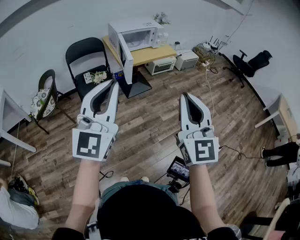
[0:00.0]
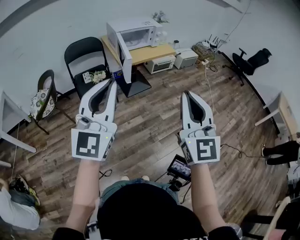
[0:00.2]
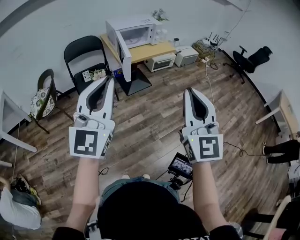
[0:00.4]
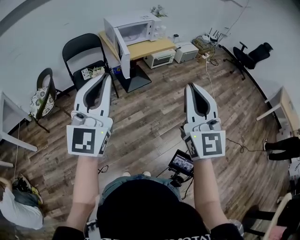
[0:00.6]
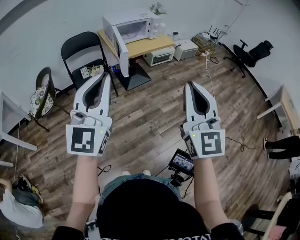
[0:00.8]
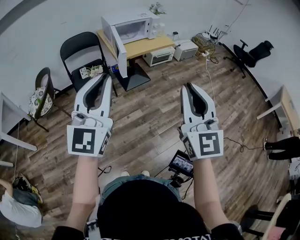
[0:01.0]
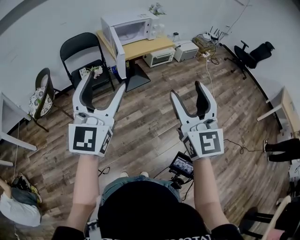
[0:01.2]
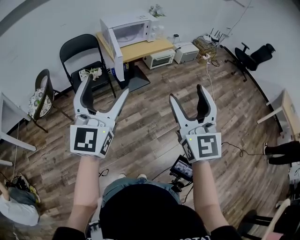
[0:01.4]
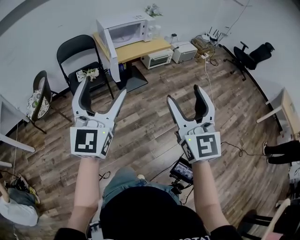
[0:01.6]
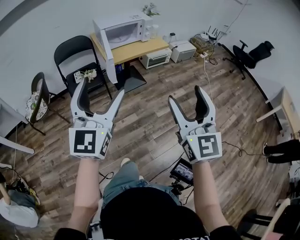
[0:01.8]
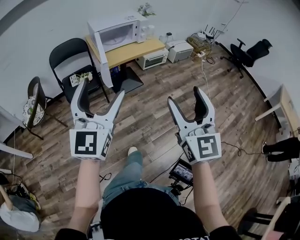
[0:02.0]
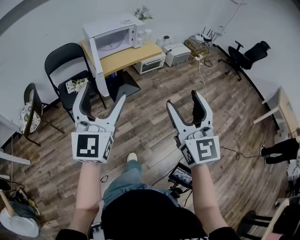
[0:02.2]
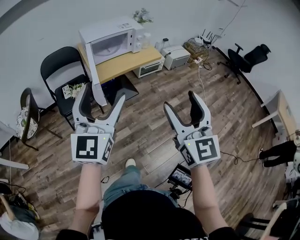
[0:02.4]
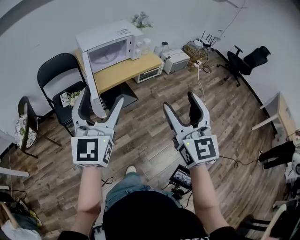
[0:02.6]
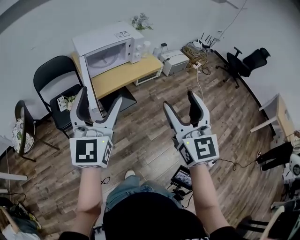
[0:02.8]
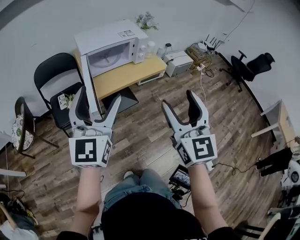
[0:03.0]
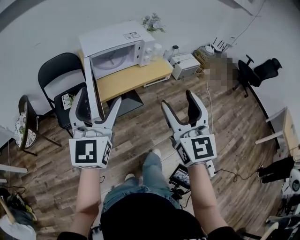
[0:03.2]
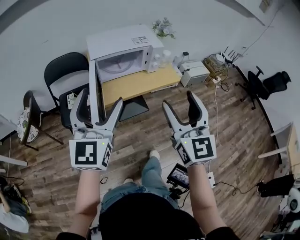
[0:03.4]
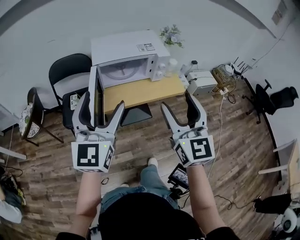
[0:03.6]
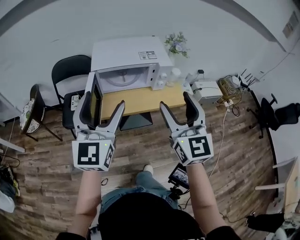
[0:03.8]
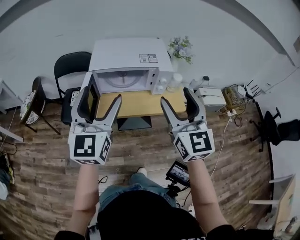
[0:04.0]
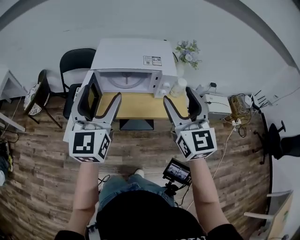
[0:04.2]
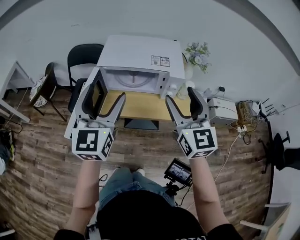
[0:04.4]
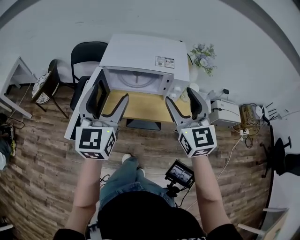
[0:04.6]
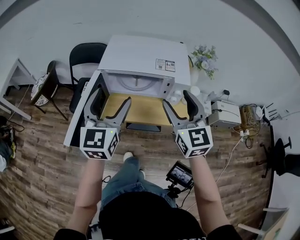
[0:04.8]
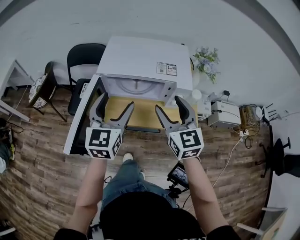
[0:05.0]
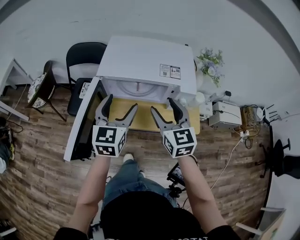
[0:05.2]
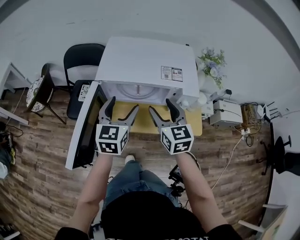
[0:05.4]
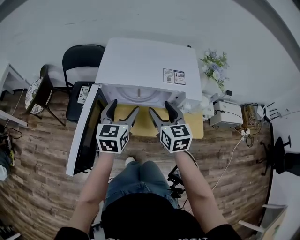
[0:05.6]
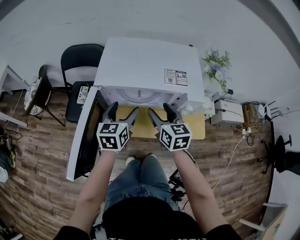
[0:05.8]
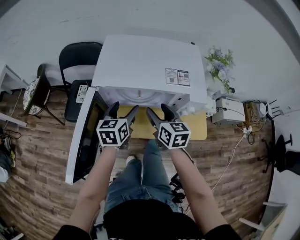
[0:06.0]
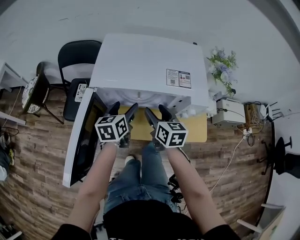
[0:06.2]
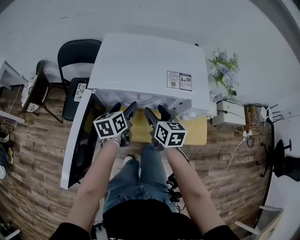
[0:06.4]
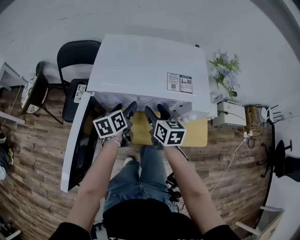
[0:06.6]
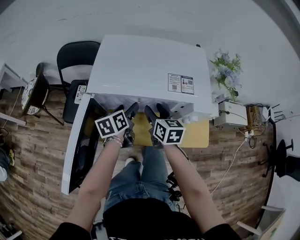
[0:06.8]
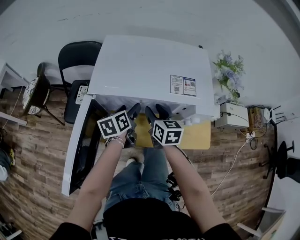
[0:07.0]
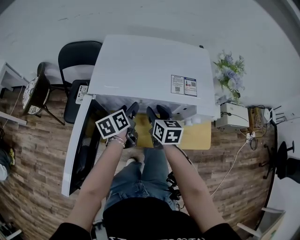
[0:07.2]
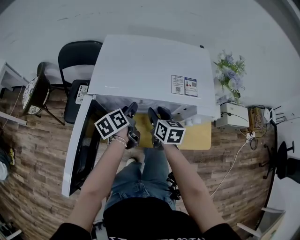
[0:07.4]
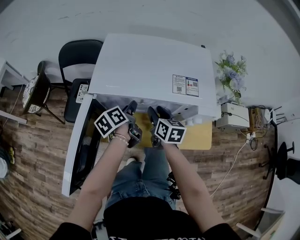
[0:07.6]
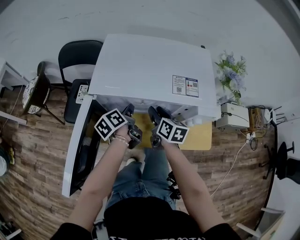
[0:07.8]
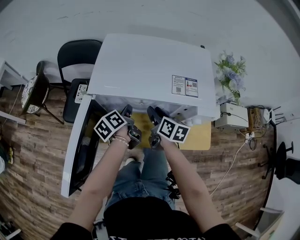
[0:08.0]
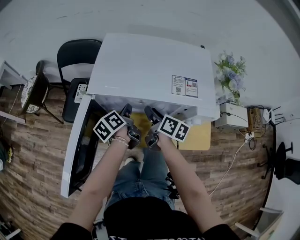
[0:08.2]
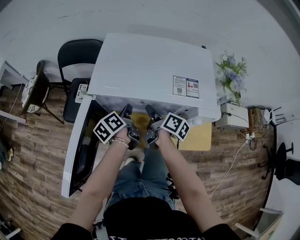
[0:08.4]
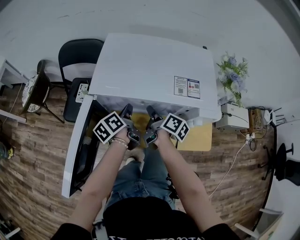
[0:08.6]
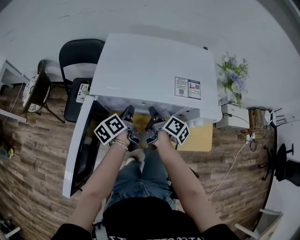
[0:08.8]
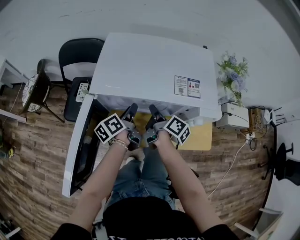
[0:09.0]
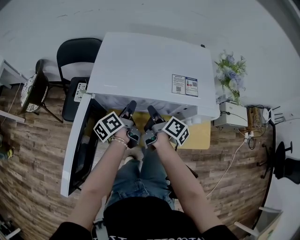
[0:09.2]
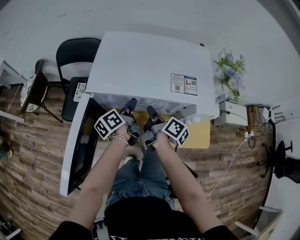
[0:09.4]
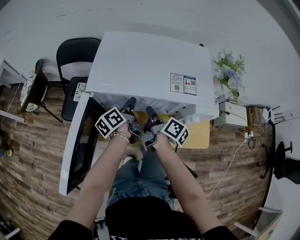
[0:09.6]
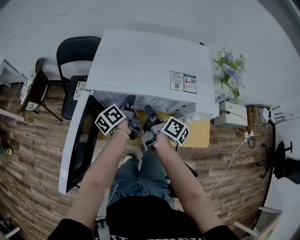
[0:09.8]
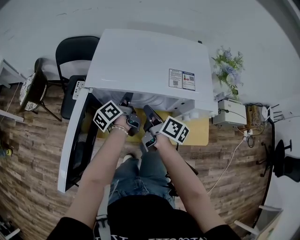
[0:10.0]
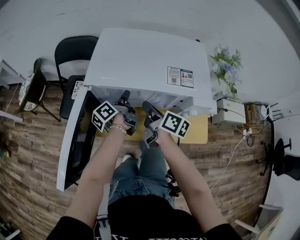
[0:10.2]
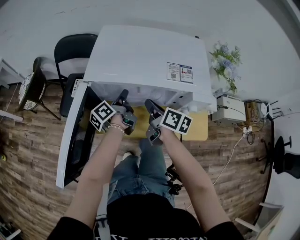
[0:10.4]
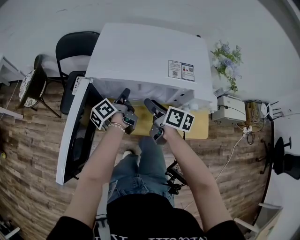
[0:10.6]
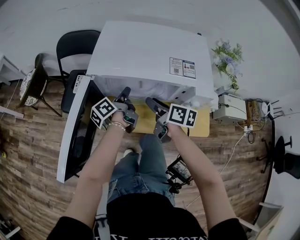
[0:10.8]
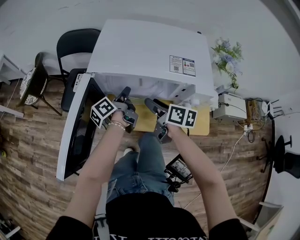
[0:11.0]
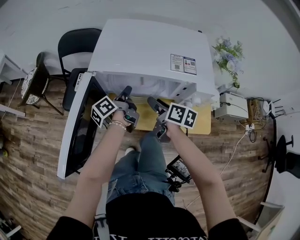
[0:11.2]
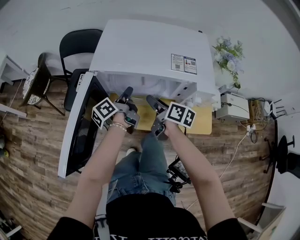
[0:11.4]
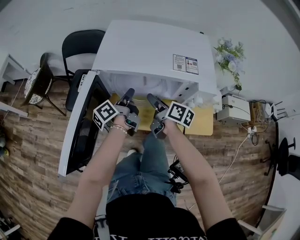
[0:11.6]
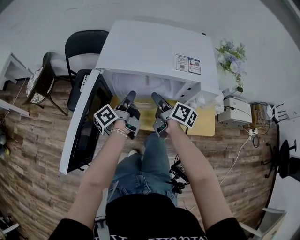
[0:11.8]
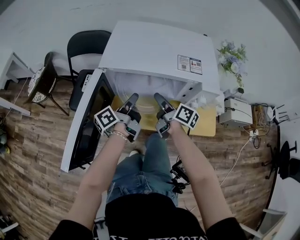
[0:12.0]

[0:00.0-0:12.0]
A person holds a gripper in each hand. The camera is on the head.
0:00.0 to 0:01.6: The grippers both shift to the right and forward by about 10 cm. The right gripper opens up. The left gripper opens.
0:01.6 to 0:03.0: Both grippers travel together forward, about 30 cm.
0:03.0 to 0:04.4: The right gripper ends up roughly 35 cm from where it was, and changes its angle by some 40 degrees; the left gripper moves some 25 cm, and swivels approximately 30 degrees.
0:04.4 to 0:06.0: The grippers both shift downward and forward by about 30 cm. The left gripper changes its angle by some 40 degrees, while the right gripper rotates some 40 degrees.
0:06.0 to 0:07.6: The two grippers go some 10 cm downward and forward. The right gripper closes; the left gripper rolls counterclockwise, seen from behind, by roughly 50 degrees, and closes its fingers.
0:07.6 to 0:09.0: The right gripper rolls clockwise, seen from behind, by about 50 degrees, and closes.
0:09.0 to 0:10.4: The right gripper changes its angle by roughly 30 degrees.
0:10.4 to 0:12.0: The right gripper opens up. Meanwhile the left gripper travels backward by roughly 10 cm.

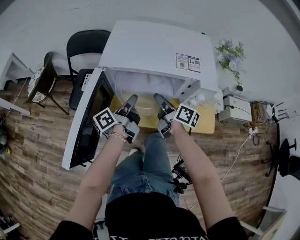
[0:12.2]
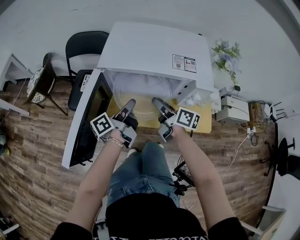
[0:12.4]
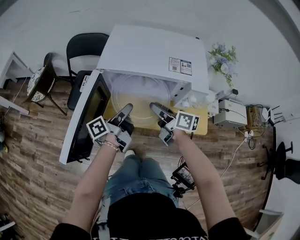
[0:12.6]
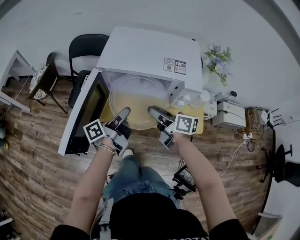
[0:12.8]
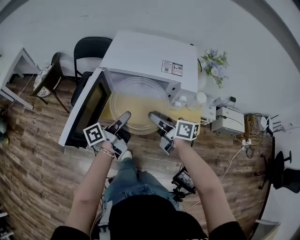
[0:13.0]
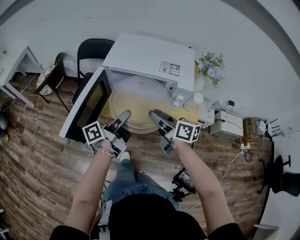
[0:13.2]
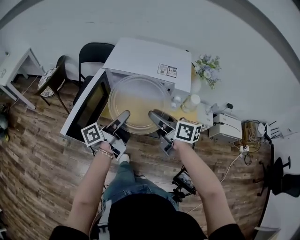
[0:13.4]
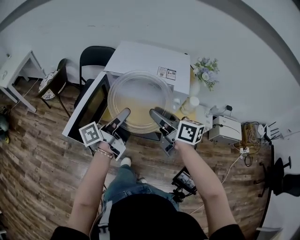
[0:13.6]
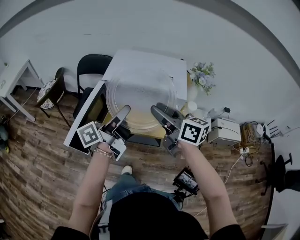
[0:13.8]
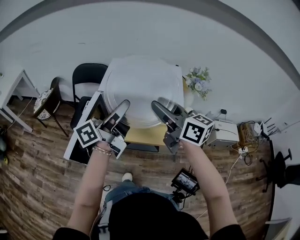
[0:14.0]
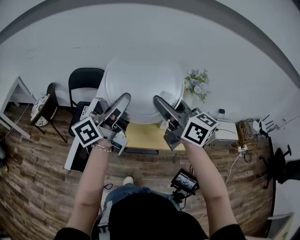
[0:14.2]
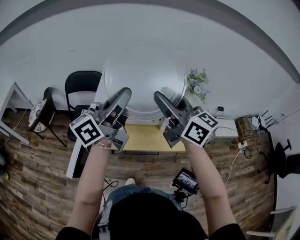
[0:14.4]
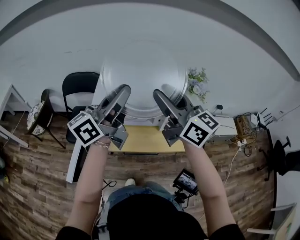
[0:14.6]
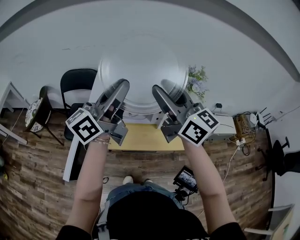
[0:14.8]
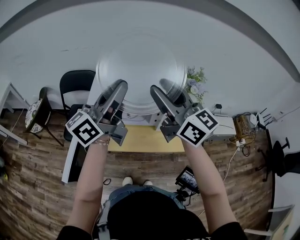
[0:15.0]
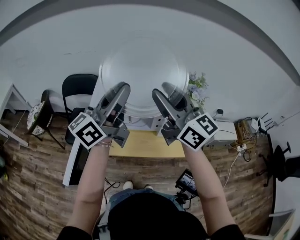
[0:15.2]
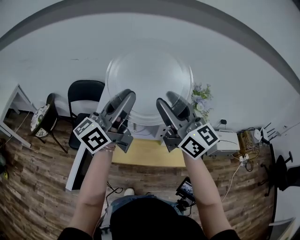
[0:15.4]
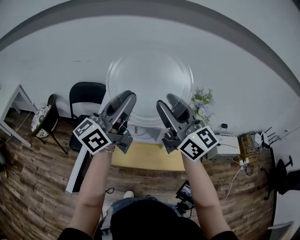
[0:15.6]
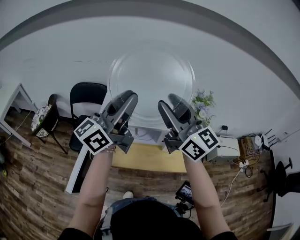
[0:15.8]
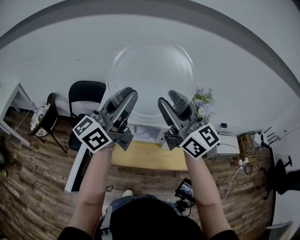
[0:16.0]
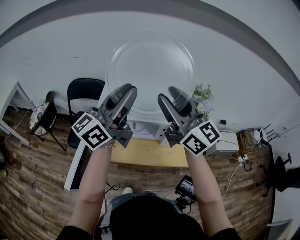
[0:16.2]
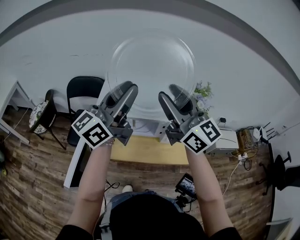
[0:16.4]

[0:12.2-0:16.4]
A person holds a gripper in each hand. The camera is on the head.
0:12.2 to 0:13.6: Both grippers move upward and backward, about 25 cm. The right gripper swivels some 30 degrees.
0:13.6 to 0:15.0: Both grippers move upward and forward, roughly 25 cm. The right gripper changes its angle by some 40 degrees. Meanwhile the left gripper turns by approximately 40 degrees.
0:15.0 to 0:16.4: The grippers move only a little.

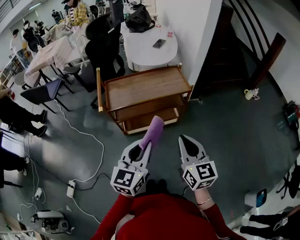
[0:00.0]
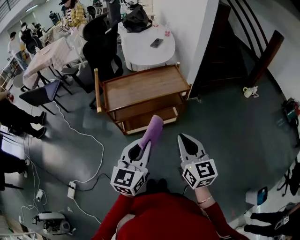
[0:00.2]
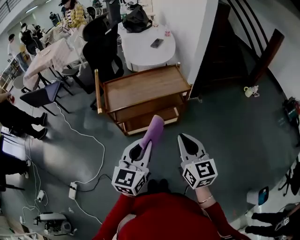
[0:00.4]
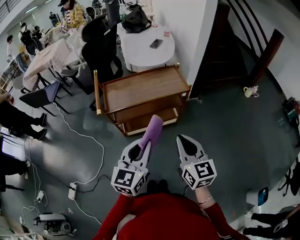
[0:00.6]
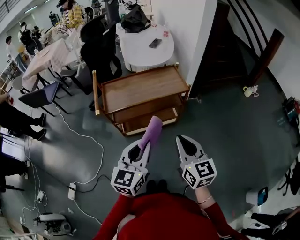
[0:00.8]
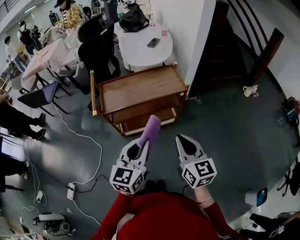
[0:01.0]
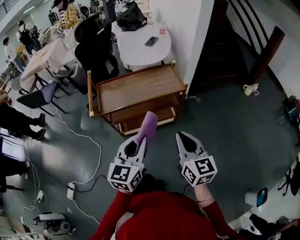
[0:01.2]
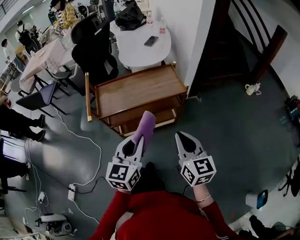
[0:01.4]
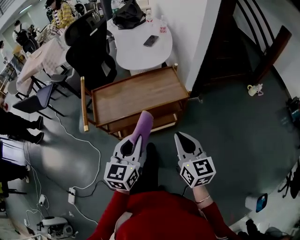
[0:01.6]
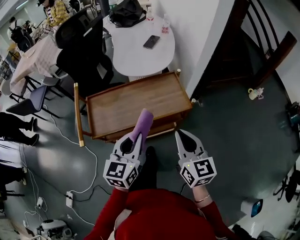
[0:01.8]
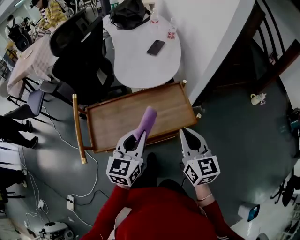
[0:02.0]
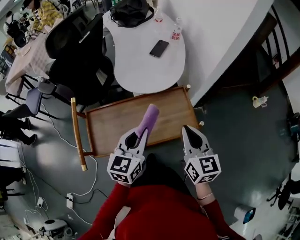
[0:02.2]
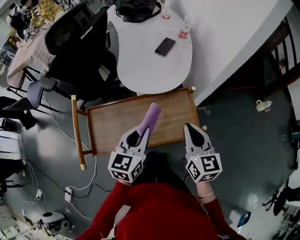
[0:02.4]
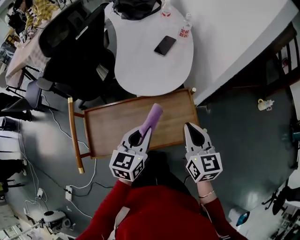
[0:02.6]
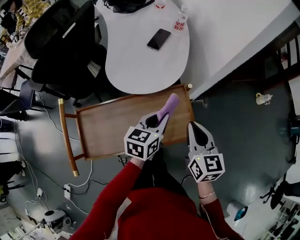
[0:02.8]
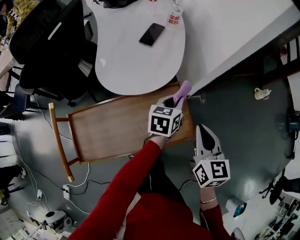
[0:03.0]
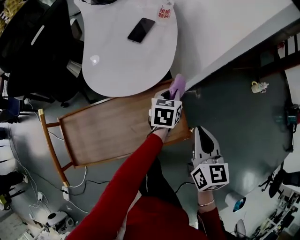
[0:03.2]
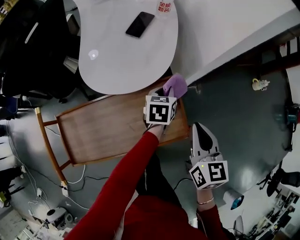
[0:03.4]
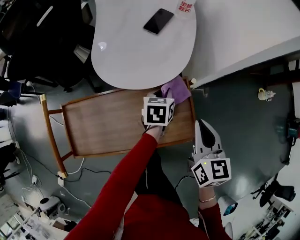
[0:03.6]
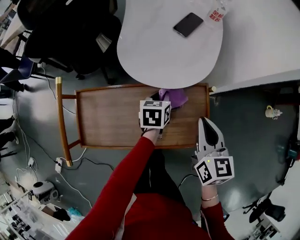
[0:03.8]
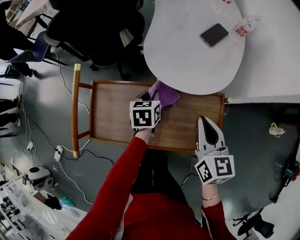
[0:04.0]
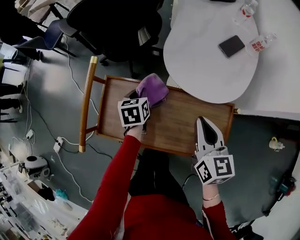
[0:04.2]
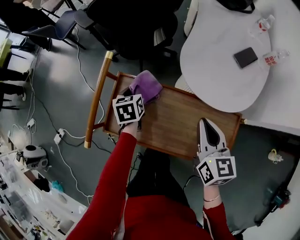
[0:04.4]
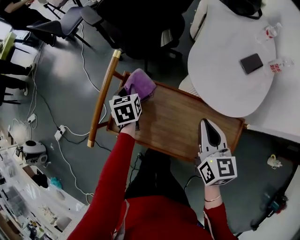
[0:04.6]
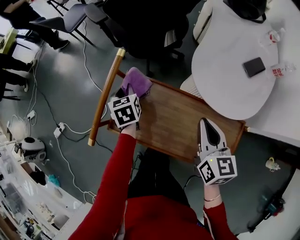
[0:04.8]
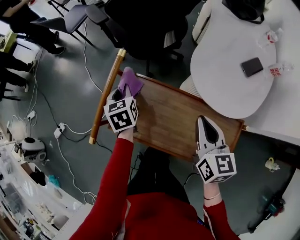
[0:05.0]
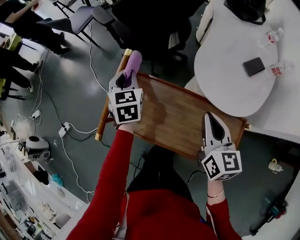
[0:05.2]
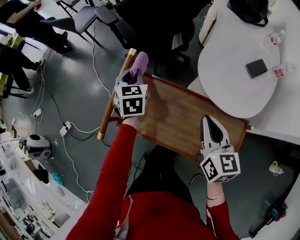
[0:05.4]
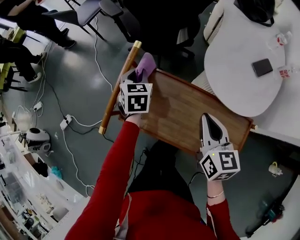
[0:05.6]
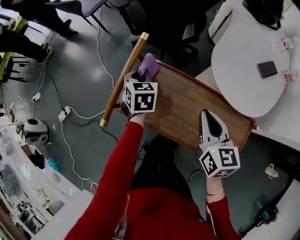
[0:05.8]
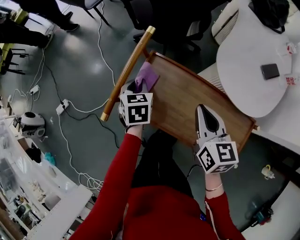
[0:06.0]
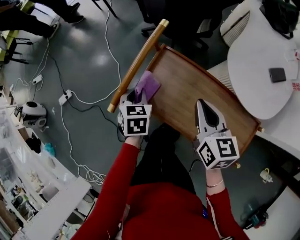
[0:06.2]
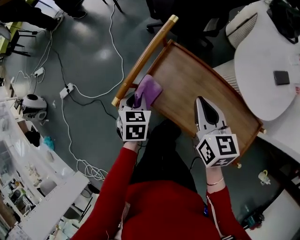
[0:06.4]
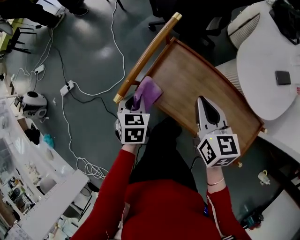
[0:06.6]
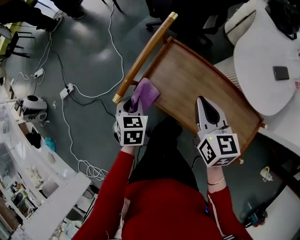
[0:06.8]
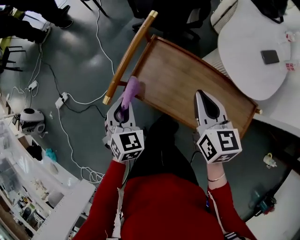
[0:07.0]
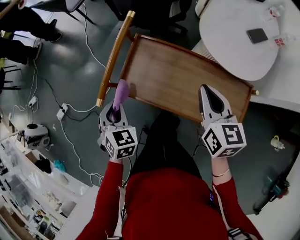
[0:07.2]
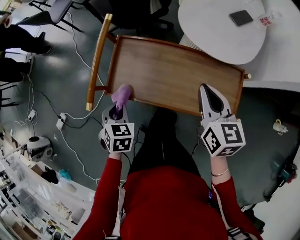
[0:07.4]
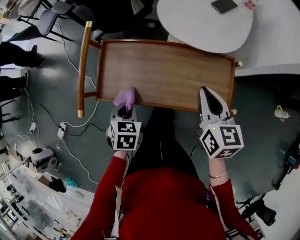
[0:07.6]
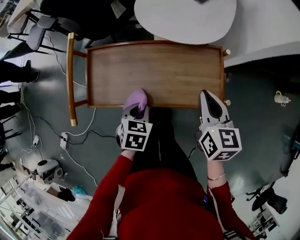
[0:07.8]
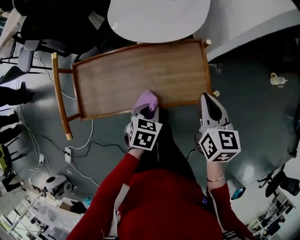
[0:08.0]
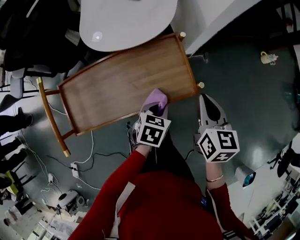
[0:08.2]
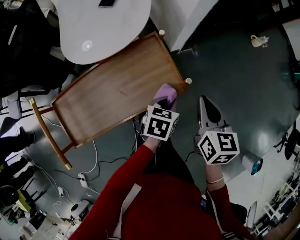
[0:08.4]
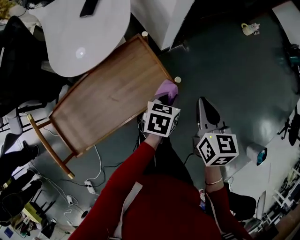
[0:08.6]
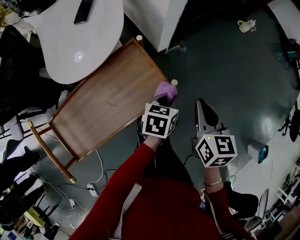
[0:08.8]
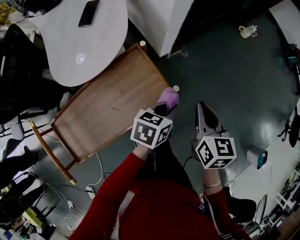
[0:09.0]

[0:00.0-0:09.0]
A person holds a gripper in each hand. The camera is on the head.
0:00.0 to 0:01.6: Both grippers travel together forward, roughly 15 cm.
0:01.6 to 0:03.0: The right gripper goes about 25 cm forward, while the left gripper is displaced forward and to the right by some 40 cm, and swivels roughly 30 degrees.
0:03.0 to 0:04.4: The right gripper changes place by roughly 25 cm, and turns by about 30 degrees. The left gripper ends up approximately 50 cm from where it was, and changes its angle by approximately 60 degrees.
0:04.4 to 0:06.0: The grippers both shift to the left by approximately 10 cm. The left gripper moves approximately 10 cm upward and comes back.
0:06.0 to 0:07.6: The left gripper changes place by about 20 cm, and swivels some 40 degrees. The right gripper moves roughly 15 cm, and turns by roughly 20 degrees.
0:07.6 to 0:09.0: The right gripper shifts by some 25 cm, and changes its angle by roughly 50 degrees, while the left gripper shifts by some 35 cm, and swivels roughly 60 degrees.
